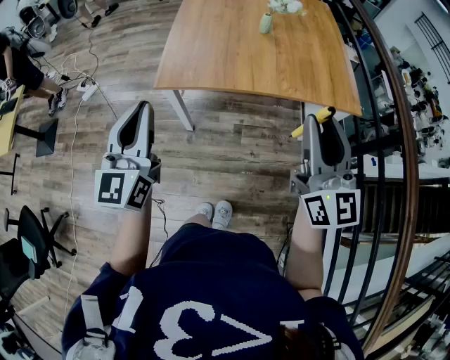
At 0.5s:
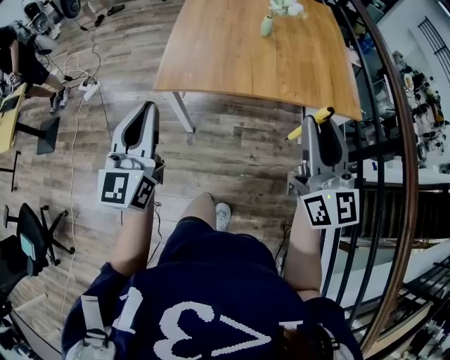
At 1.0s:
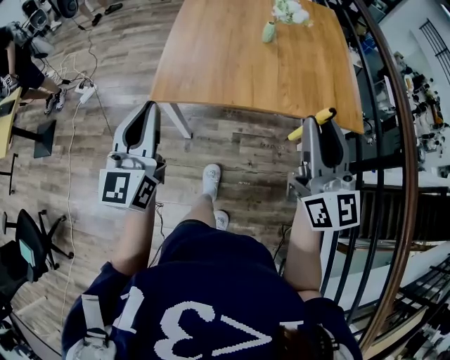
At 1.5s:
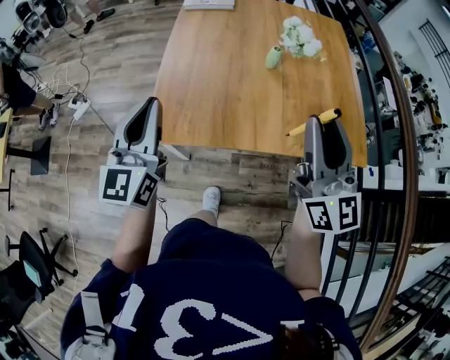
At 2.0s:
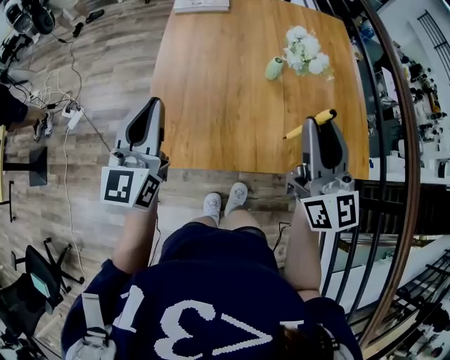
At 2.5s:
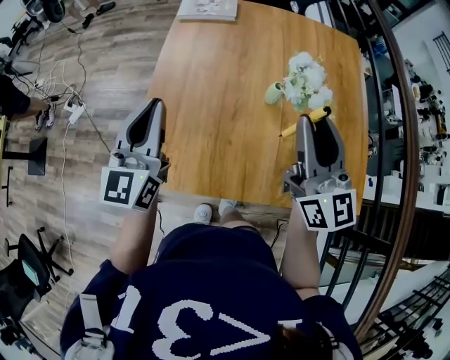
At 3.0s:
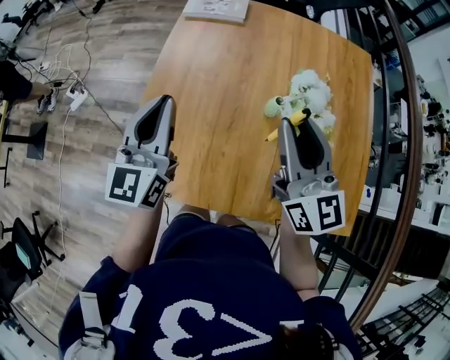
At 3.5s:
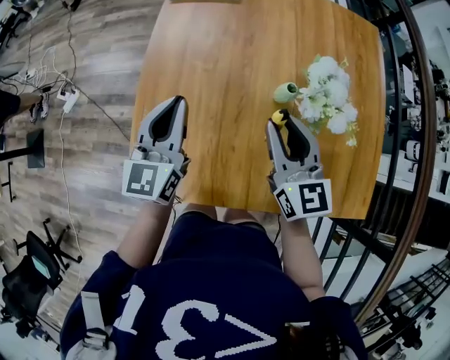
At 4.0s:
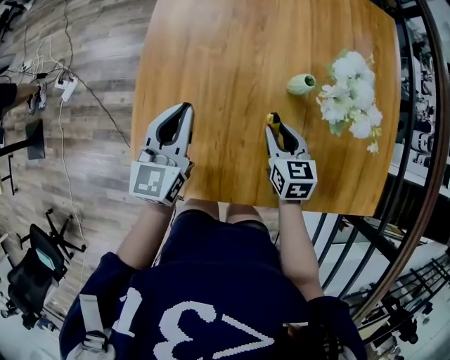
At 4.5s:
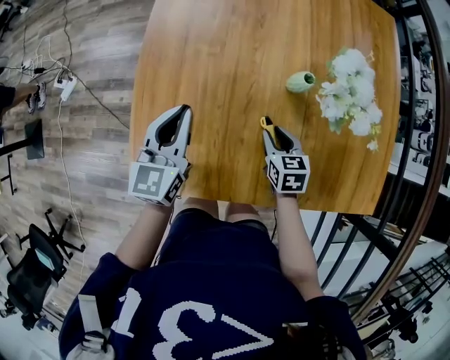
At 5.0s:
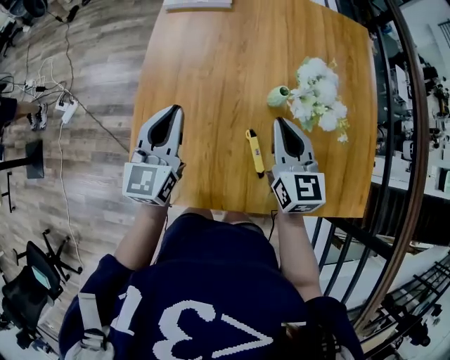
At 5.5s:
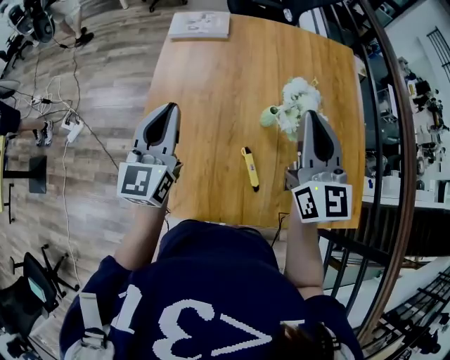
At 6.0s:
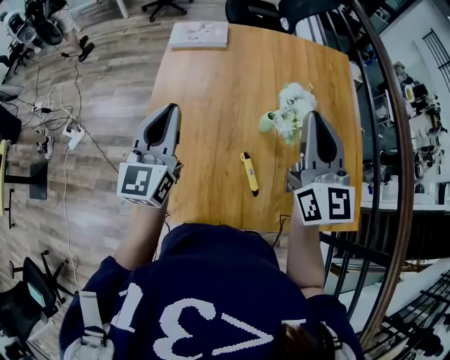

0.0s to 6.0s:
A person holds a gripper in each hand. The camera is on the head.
0.0s to 2.0s: Both grippers travel together forward, some 40 cm.
2.0s to 4.0s: The right gripper is displaced downward and forward by some 40 cm, and tilts its fingers roughly 50 degrees downward, while the left gripper travels downward and forward by approximately 25 cm.
4.0s to 6.0s: The left gripper heads upward, covering about 15 cm; the right gripper moves upward, approximately 35 cm, angles its fingers upward, by some 50 degrees, and closes its fingers.

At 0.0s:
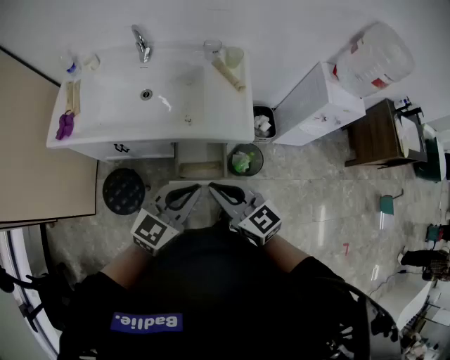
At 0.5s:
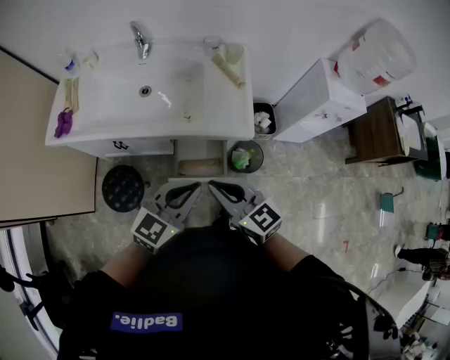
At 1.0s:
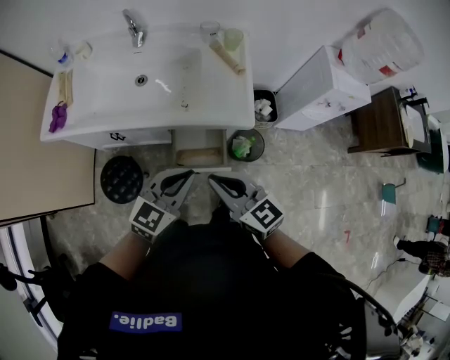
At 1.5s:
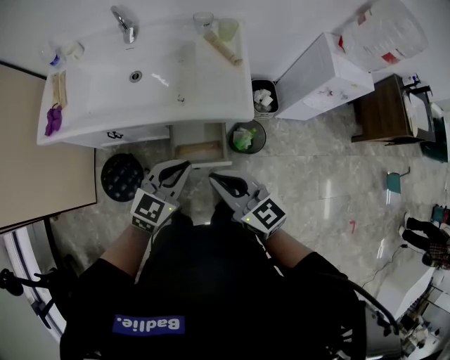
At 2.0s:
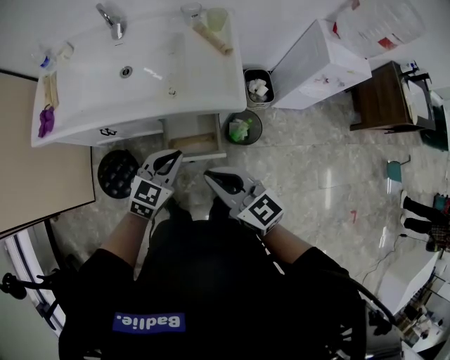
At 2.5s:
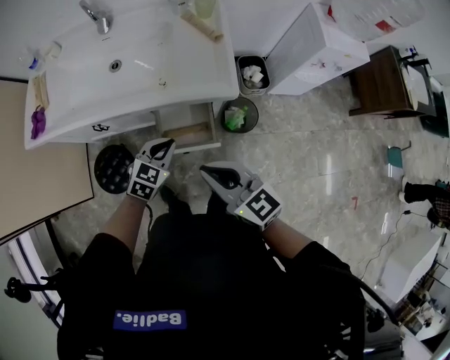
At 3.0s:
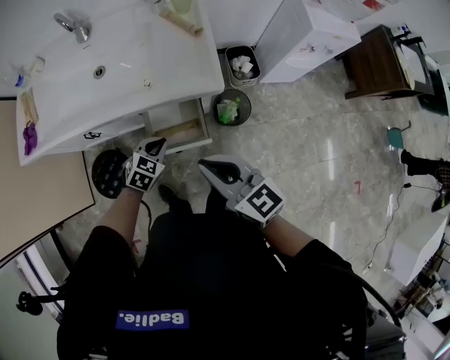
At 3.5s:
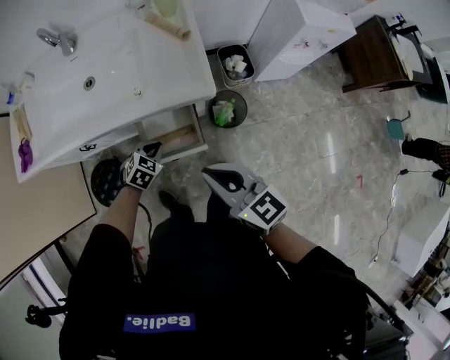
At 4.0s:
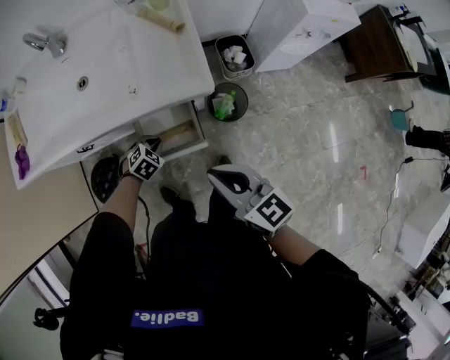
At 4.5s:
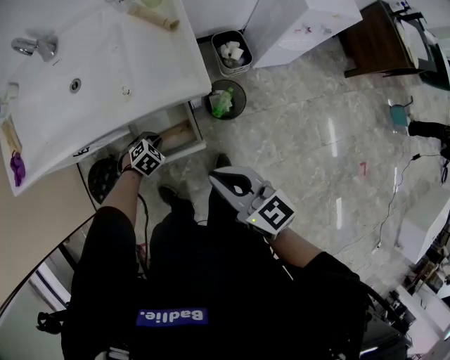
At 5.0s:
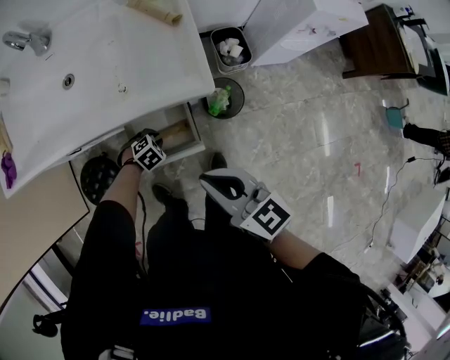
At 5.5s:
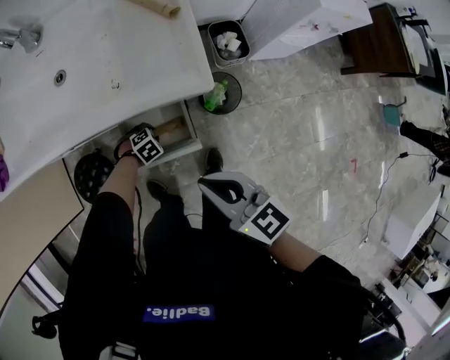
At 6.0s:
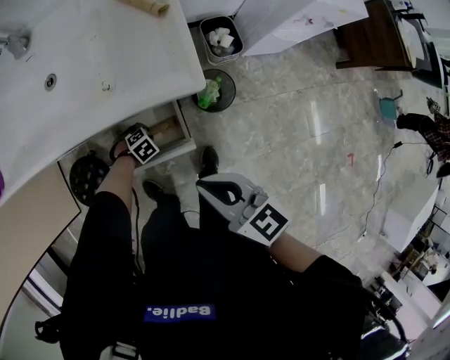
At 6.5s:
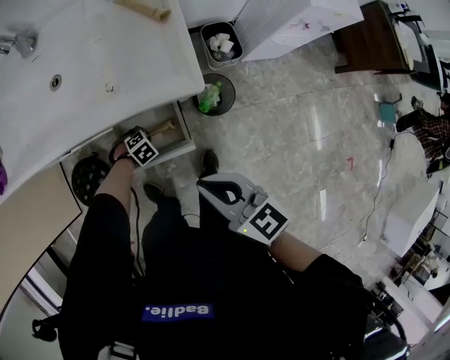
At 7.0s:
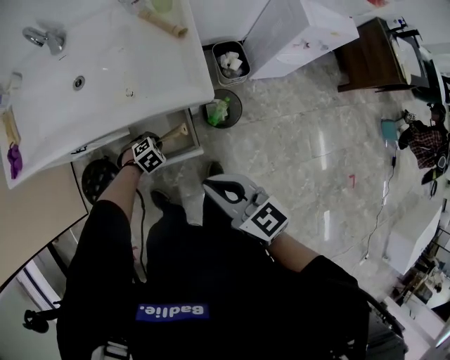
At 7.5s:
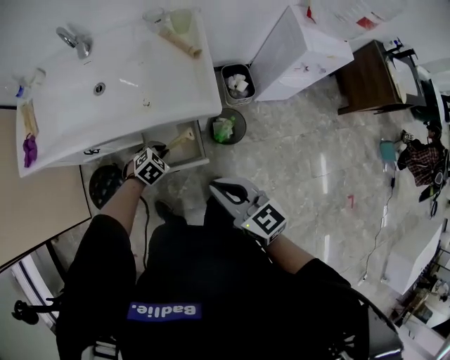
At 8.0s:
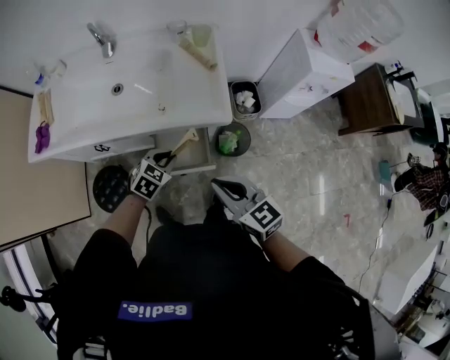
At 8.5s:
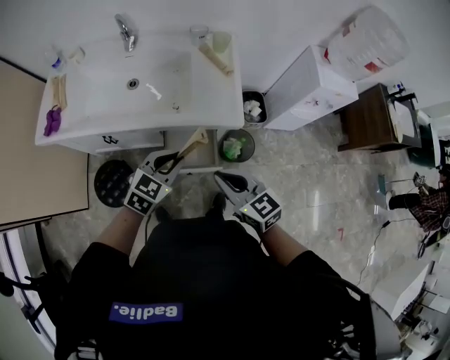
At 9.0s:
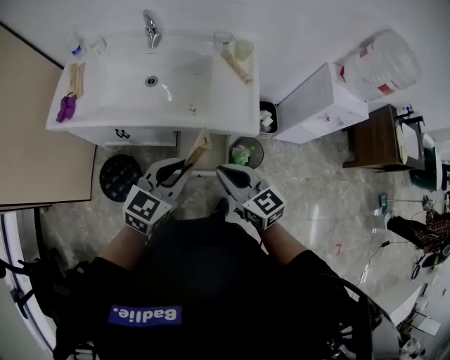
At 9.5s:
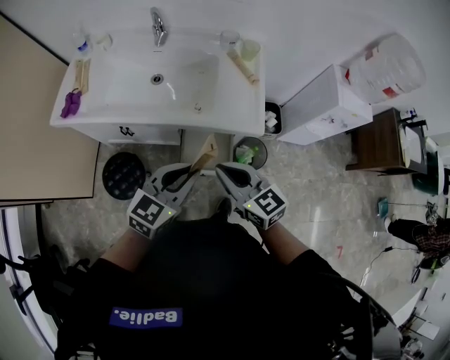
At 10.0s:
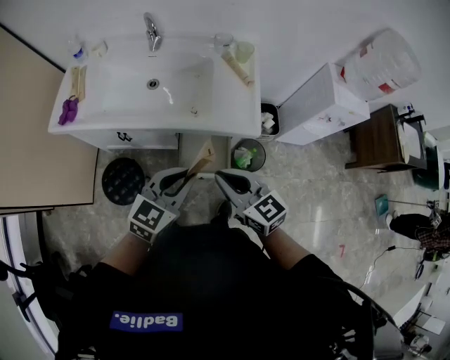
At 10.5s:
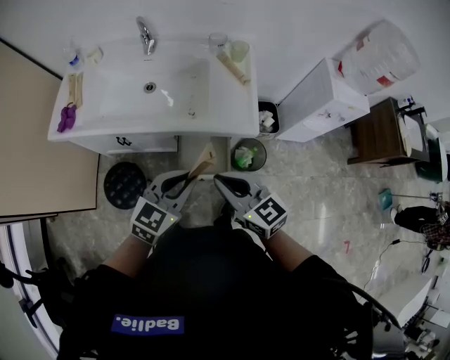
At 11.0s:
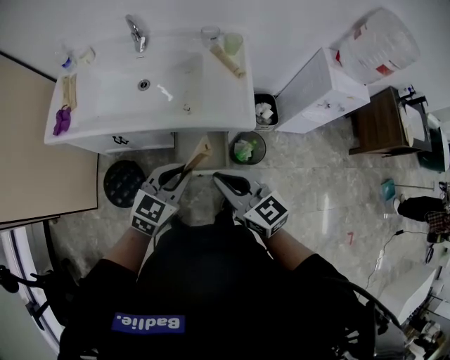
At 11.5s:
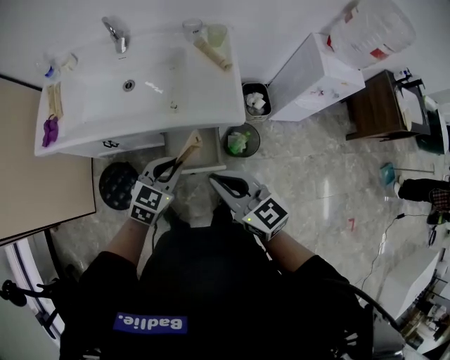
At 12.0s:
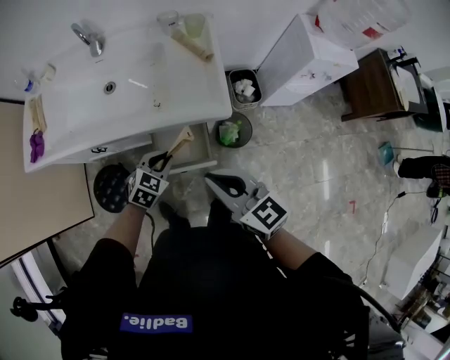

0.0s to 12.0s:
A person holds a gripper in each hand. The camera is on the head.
0.0s to 2.0s: The left gripper shifts roughly 15 cm downward and forward. Meanwhile the right gripper shifts by roughly 5 cm.
2.0s to 4.0s: The right gripper moves to the right and downward, about 10 cm, while the left gripper moves downward, about 25 cm, and angles its fingers downward, by approximately 40 degrees.
4.0s to 6.0s: The left gripper is displaced downward by roughly 15 cm, and opens up, while the right gripper moves downward, approximately 5 cm.
6.0s to 8.0s: The left gripper goes some 30 cm upward, and angles its fingers upward, by some 30 degrees, while the right gripper goes some 10 cm upward.
8.0s to 10.0s: The left gripper moves upward and backward, approximately 20 cm, and rotates about 30 degrees. The right gripper heads to the left, covering approximately 10 cm.
10.0s to 12.0s: The left gripper heads downward and forward, covering some 20 cm, and rotates some 30 degrees, while the right gripper travels to the right by approximately 5 cm.

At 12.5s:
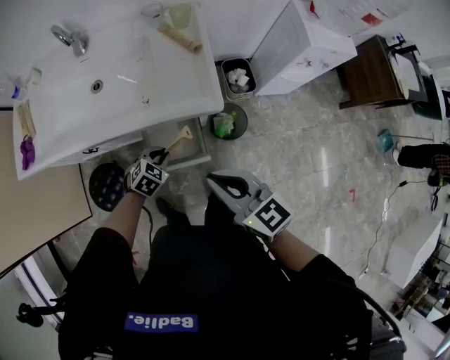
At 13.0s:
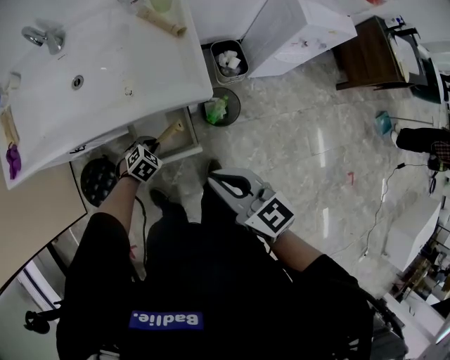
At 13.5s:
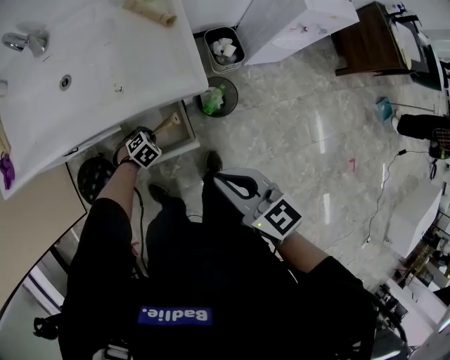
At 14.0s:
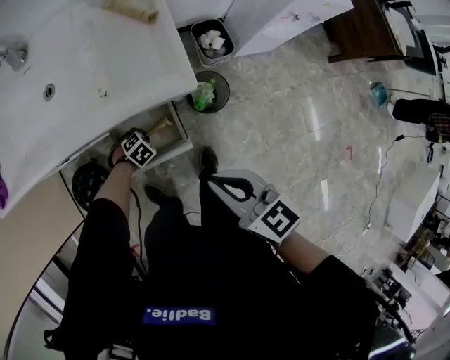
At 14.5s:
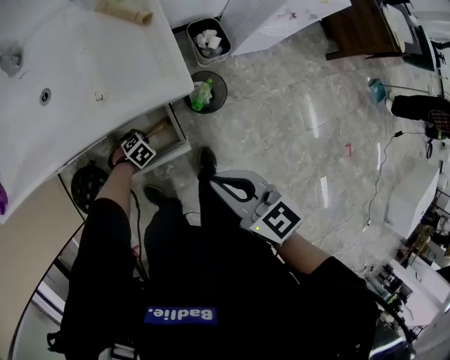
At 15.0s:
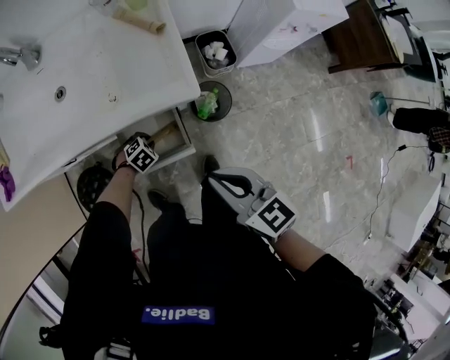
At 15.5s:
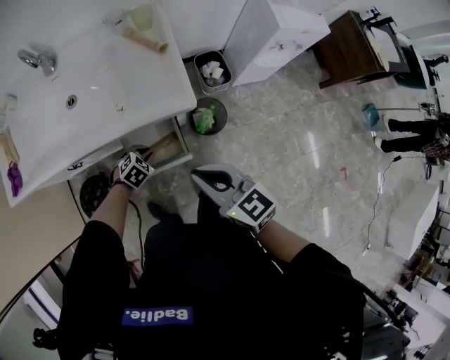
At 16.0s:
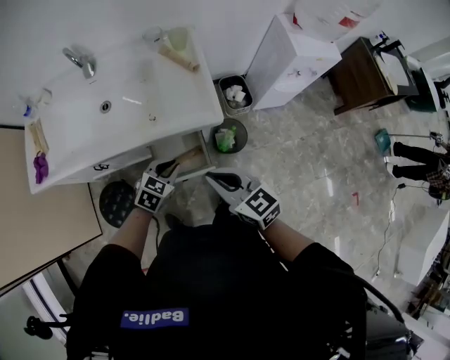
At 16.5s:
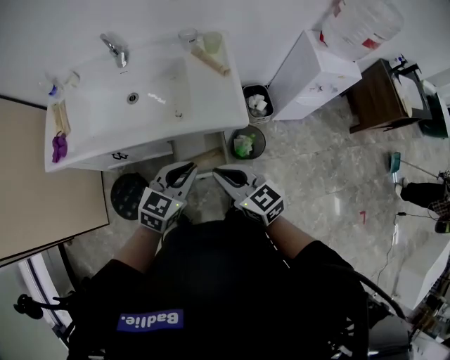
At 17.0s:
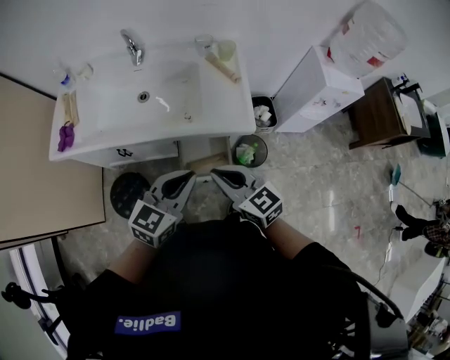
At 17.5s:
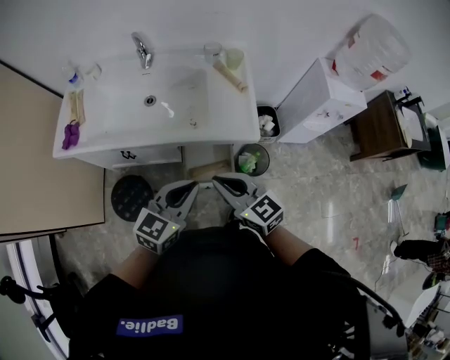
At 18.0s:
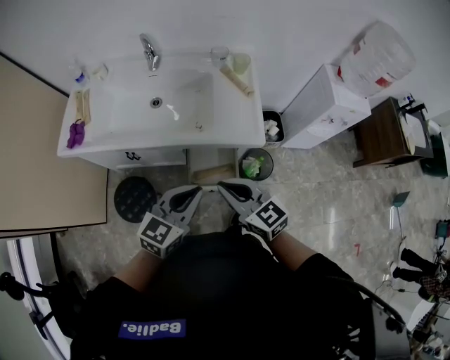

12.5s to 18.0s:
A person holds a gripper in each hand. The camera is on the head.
12.5s to 14.5s: The left gripper goes roughly 20 cm downward, and changes its angle by some 30 degrees. The right gripper heads downward, covering approximately 10 cm.
14.5s to 16.0s: The right gripper heads upward, covering some 10 cm, while the left gripper moves upward, about 30 cm, and tips its fingers upward by some 30 degrees.
16.0s to 18.0s: The left gripper goes approximately 20 cm upward, and changes its angle by roughly 30 degrees, while the right gripper travels to the left by approximately 10 cm.

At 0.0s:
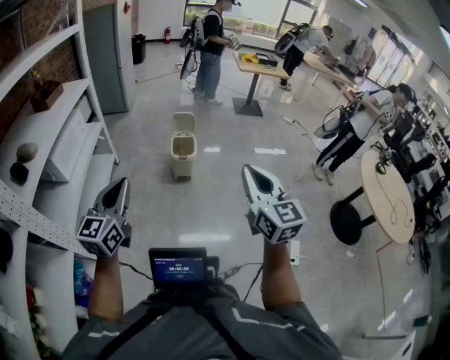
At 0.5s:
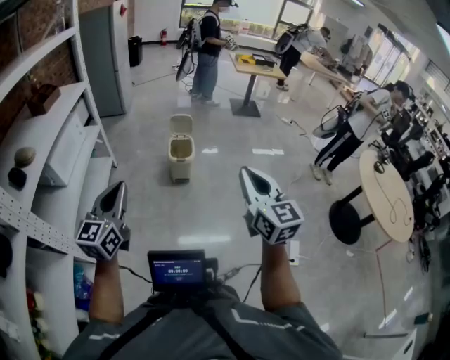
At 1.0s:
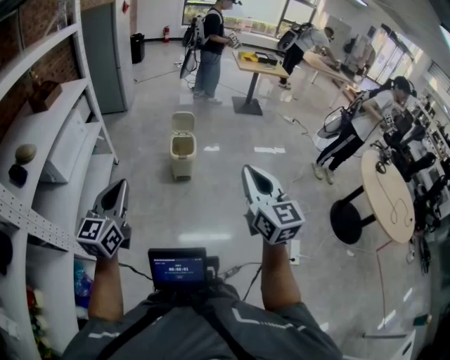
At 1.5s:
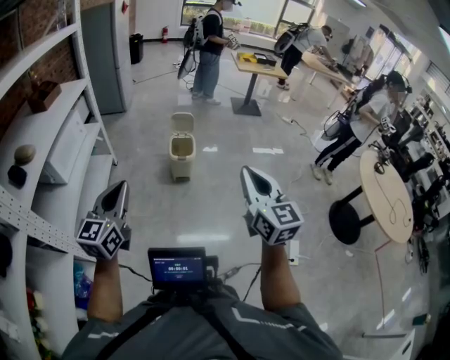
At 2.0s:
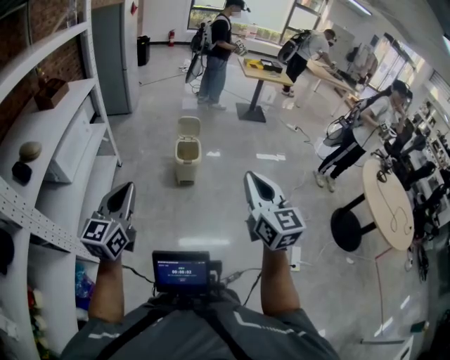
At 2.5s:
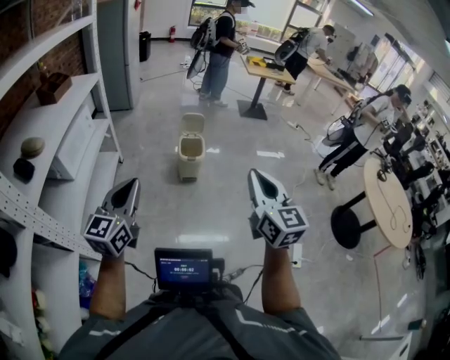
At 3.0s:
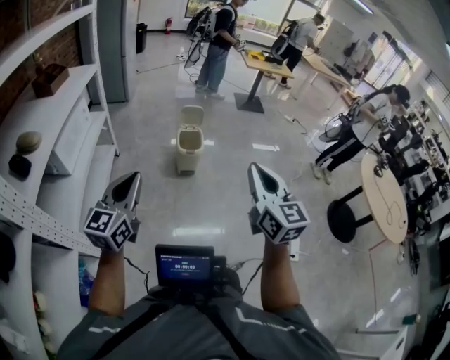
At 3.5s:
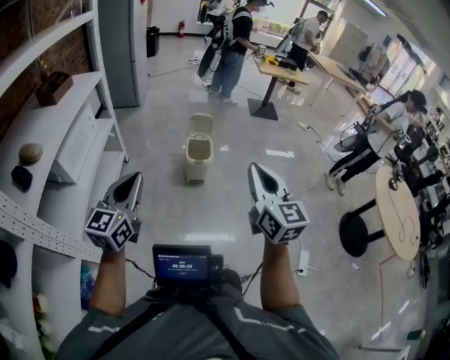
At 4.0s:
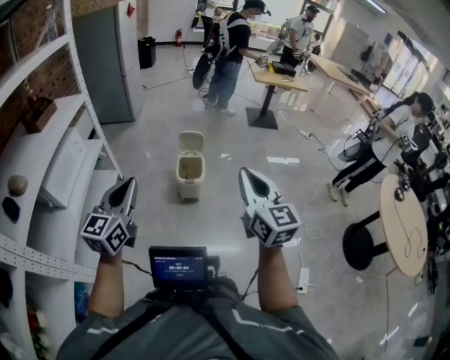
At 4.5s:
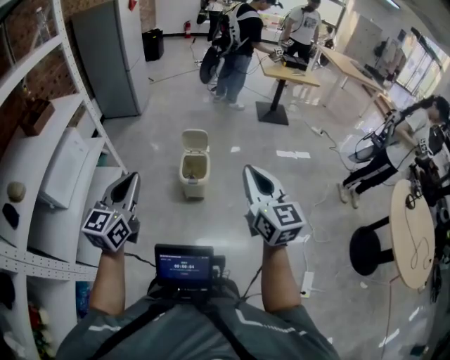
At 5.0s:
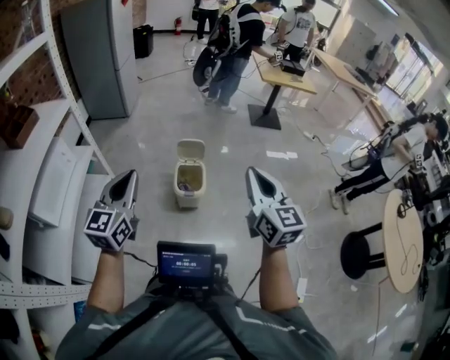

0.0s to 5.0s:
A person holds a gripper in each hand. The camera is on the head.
0.0s to 2.5s: The right gripper shifts approximately 5 cm to the left.
2.5s to 5.0s: The two grippers go roughly 35 cm forward.
